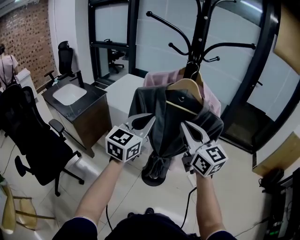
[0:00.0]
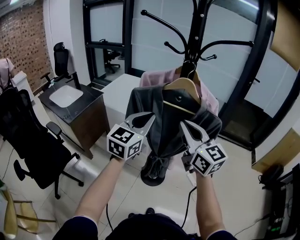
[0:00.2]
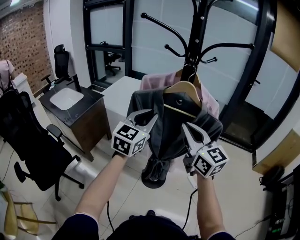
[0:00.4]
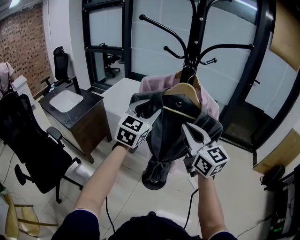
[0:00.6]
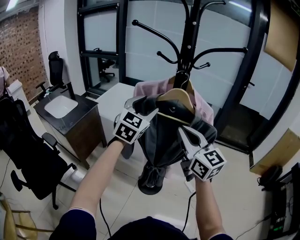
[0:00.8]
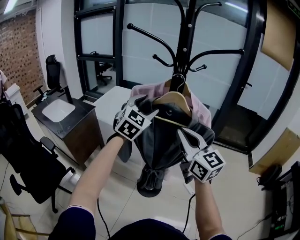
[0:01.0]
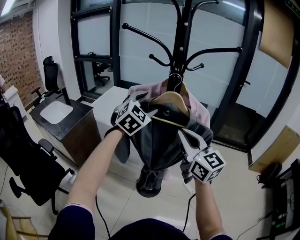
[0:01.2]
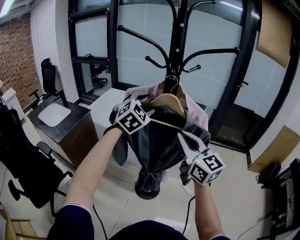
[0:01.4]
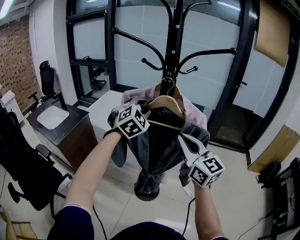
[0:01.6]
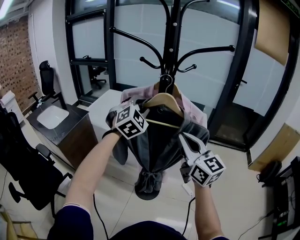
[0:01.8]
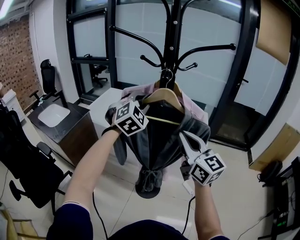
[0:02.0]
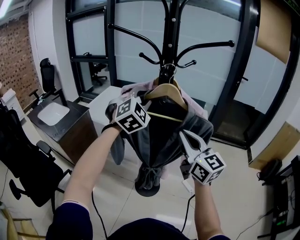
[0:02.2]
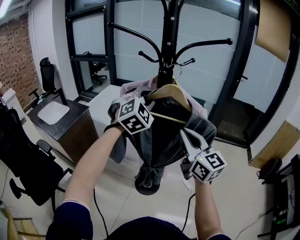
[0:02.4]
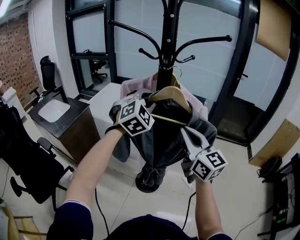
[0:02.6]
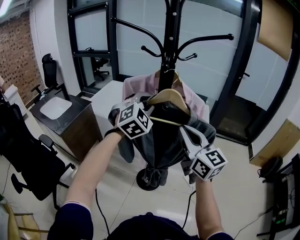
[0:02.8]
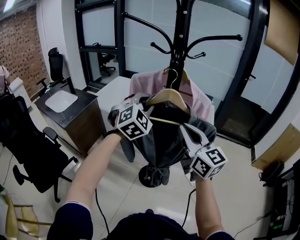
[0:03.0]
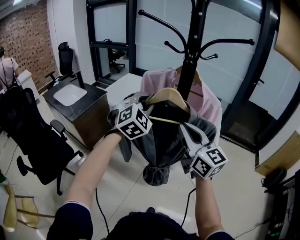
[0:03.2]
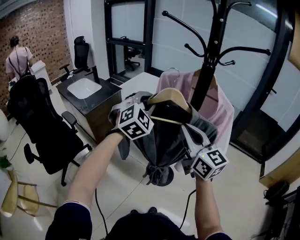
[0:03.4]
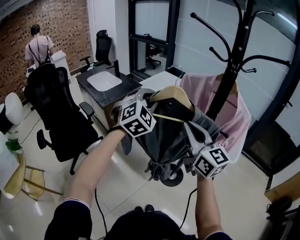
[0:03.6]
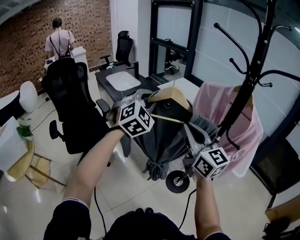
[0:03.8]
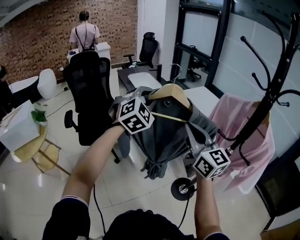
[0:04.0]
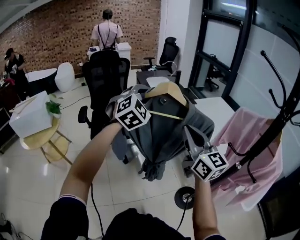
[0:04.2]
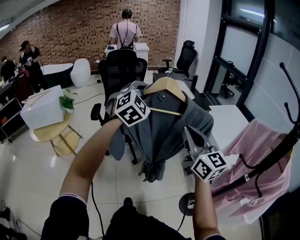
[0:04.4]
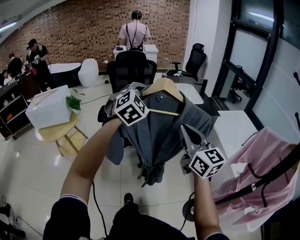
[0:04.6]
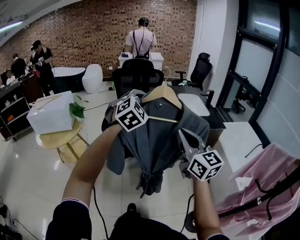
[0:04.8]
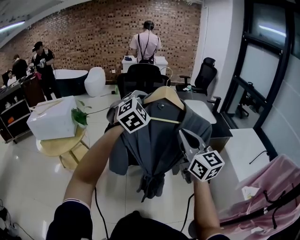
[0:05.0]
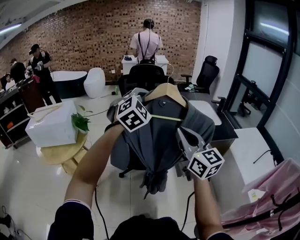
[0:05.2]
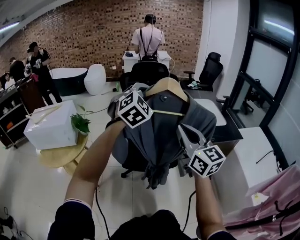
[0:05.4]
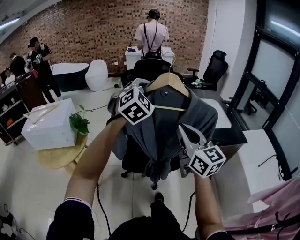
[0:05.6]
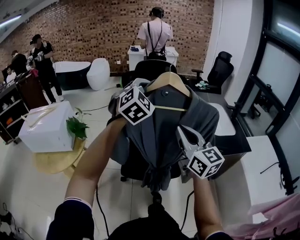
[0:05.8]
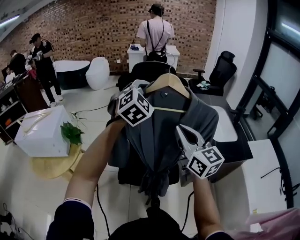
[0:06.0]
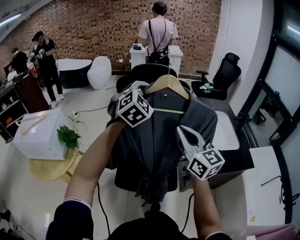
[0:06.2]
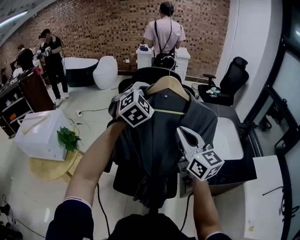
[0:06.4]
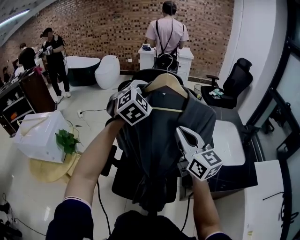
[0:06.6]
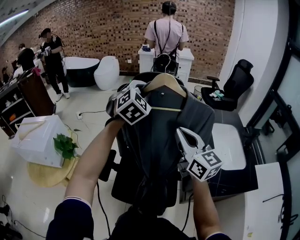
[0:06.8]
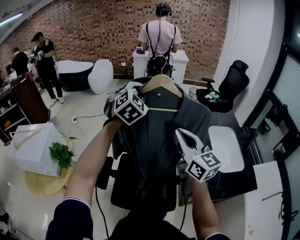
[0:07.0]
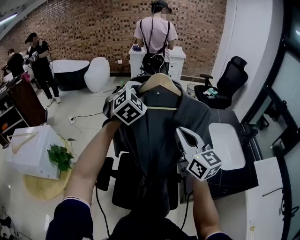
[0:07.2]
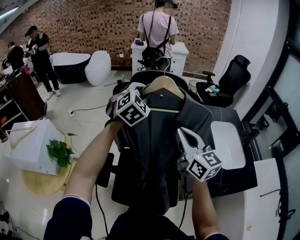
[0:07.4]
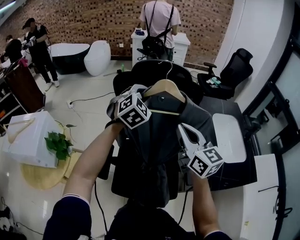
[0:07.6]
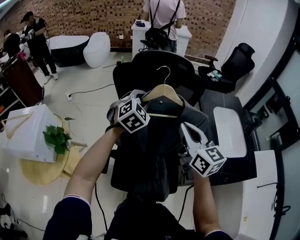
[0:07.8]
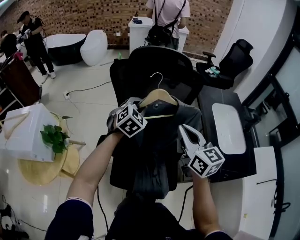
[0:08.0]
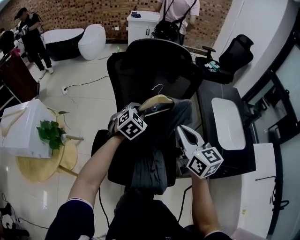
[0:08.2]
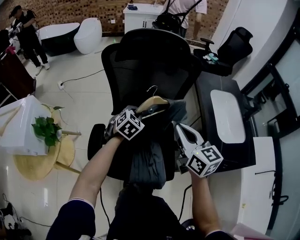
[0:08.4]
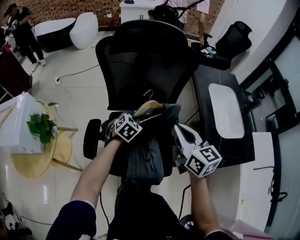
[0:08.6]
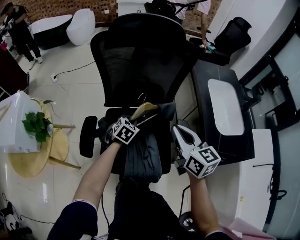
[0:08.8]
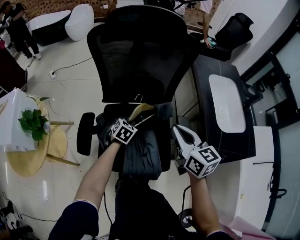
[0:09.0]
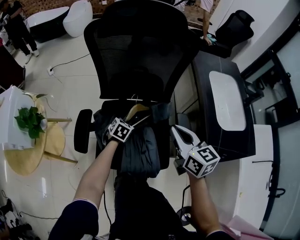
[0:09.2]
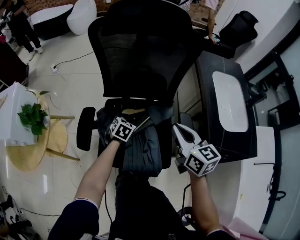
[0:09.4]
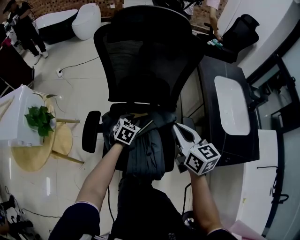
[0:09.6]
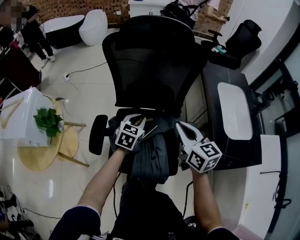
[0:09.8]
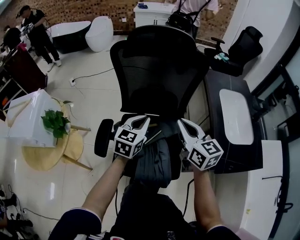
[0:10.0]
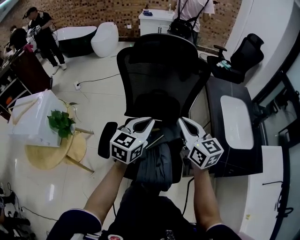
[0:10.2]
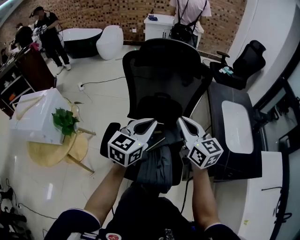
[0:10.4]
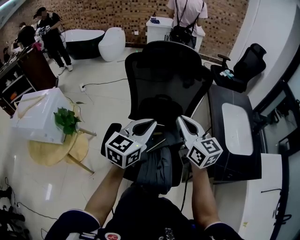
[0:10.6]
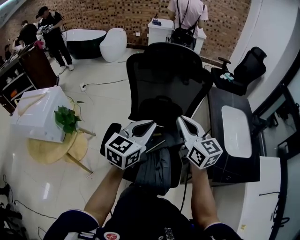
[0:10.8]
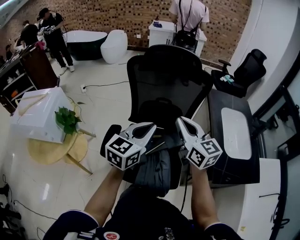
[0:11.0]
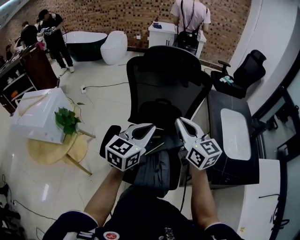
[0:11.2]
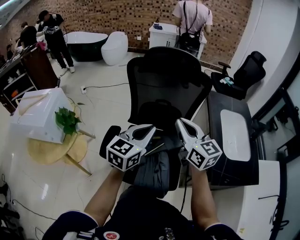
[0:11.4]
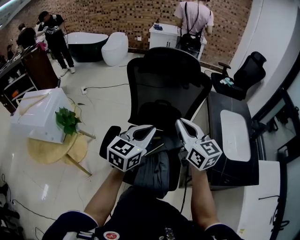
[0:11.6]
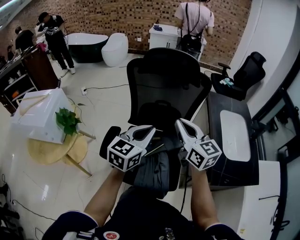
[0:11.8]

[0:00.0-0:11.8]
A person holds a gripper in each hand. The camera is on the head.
0:00.0 to 0:01.4: The left gripper heads forward and to the right, covering about 20 cm, changes its angle by some 50 degrees, and opens up. Meanwhile the right gripper moves some 5 cm.
0:01.4 to 0:03.0: The left gripper is displaced backward by about 5 cm, and closes.
0:03.0 to 0:04.4: The right gripper shifts by about 40 cm, and swivels about 50 degrees; the left gripper ends up some 50 cm from where it was, and swivels about 60 degrees.
0:04.4 to 0:06.0: The two grippers travel together, forward, approximately 50 cm.
0:06.0 to 0:07.4: The two grippers go approximately 25 cm forward.
0:07.4 to 0:08.8: The left gripper is displaced downward by roughly 40 cm, and turns by some 40 degrees. Meanwhile the right gripper is displaced downward by some 15 cm, and turns by some 20 degrees.
0:08.8 to 0:10.4: The right gripper heads upward and to the left, covering roughly 10 cm; the left gripper moves upward, about 30 cm, and points its fingers some 40 degrees further upward.
0:10.4 to 0:11.8: The grippers stay close to where they were, moving slightly.

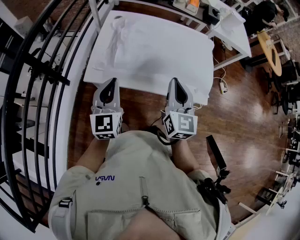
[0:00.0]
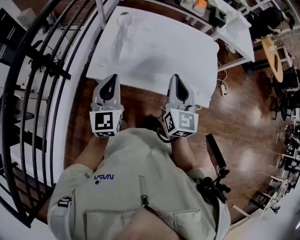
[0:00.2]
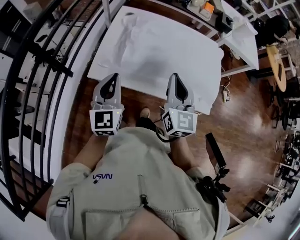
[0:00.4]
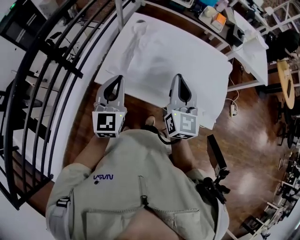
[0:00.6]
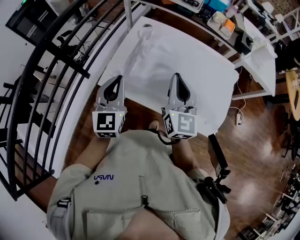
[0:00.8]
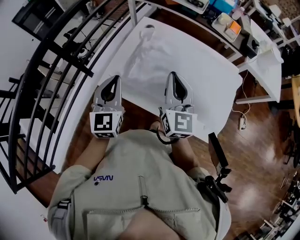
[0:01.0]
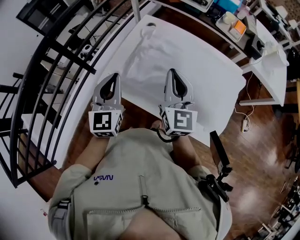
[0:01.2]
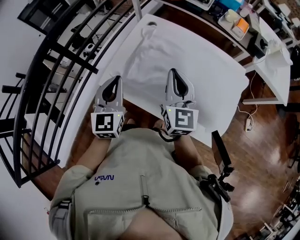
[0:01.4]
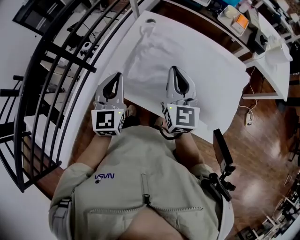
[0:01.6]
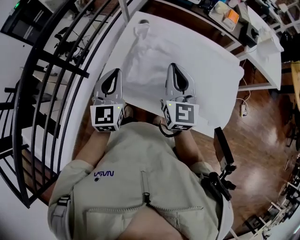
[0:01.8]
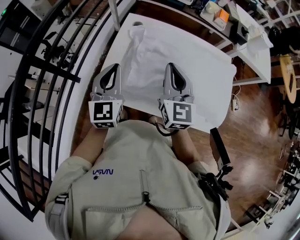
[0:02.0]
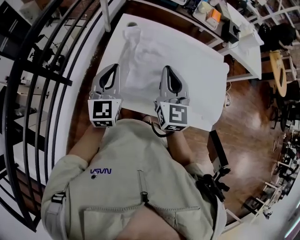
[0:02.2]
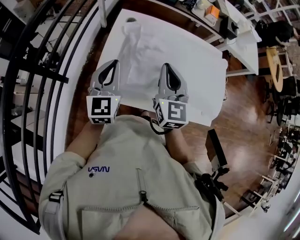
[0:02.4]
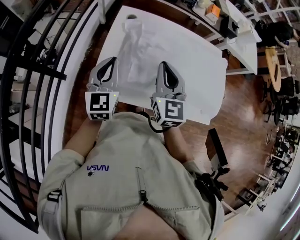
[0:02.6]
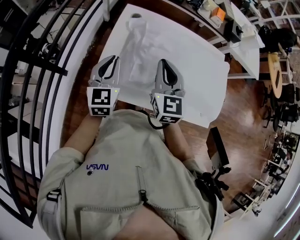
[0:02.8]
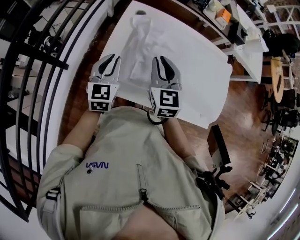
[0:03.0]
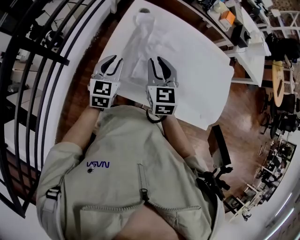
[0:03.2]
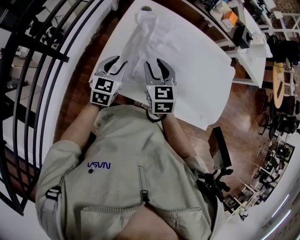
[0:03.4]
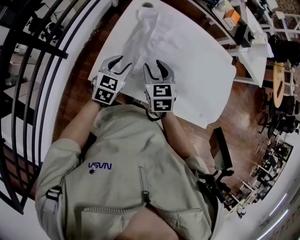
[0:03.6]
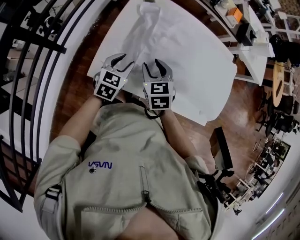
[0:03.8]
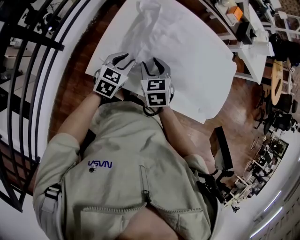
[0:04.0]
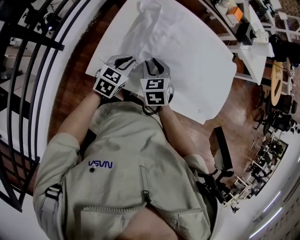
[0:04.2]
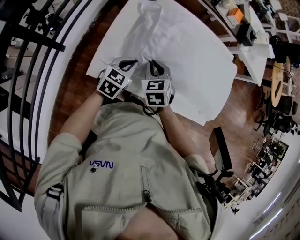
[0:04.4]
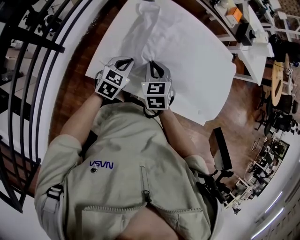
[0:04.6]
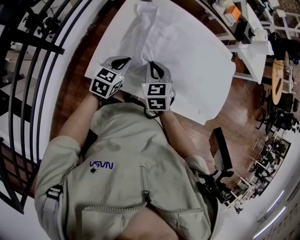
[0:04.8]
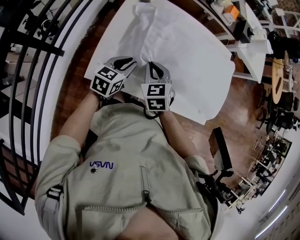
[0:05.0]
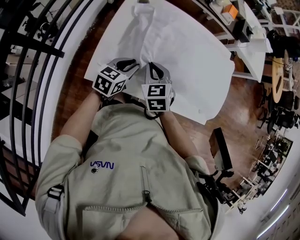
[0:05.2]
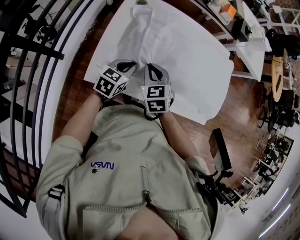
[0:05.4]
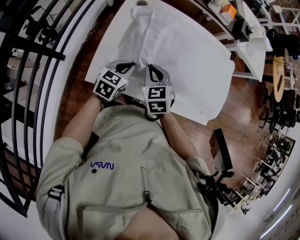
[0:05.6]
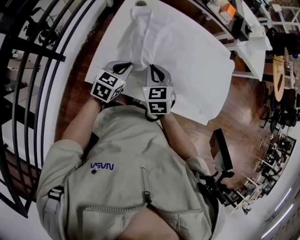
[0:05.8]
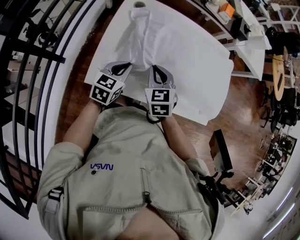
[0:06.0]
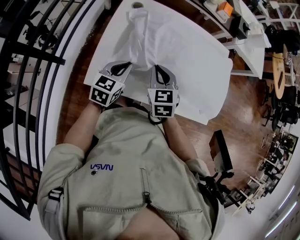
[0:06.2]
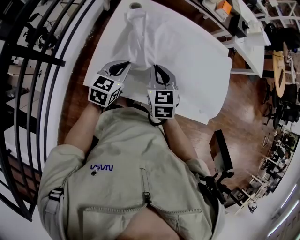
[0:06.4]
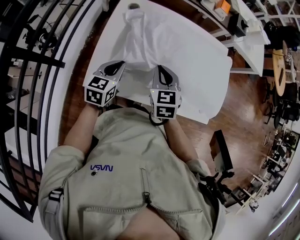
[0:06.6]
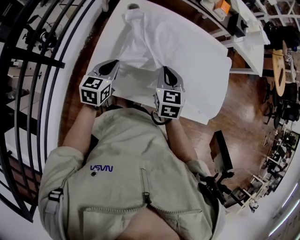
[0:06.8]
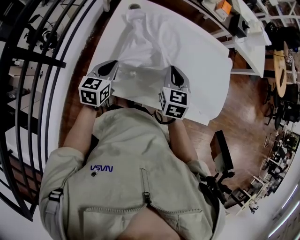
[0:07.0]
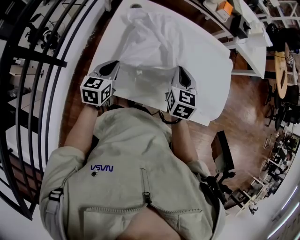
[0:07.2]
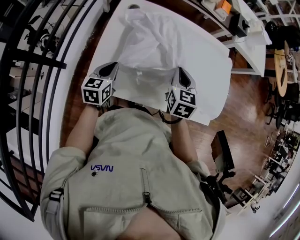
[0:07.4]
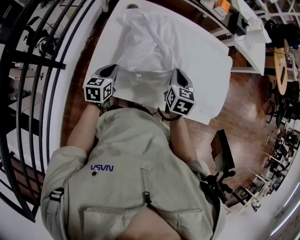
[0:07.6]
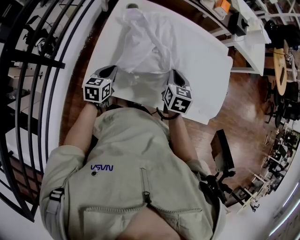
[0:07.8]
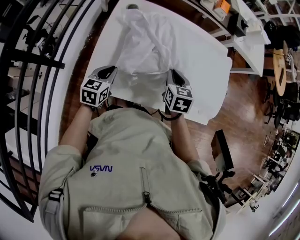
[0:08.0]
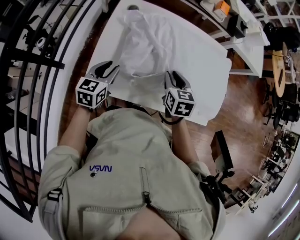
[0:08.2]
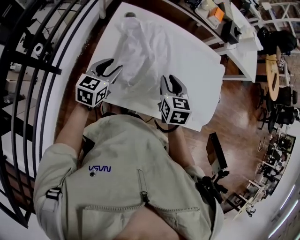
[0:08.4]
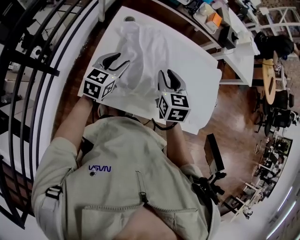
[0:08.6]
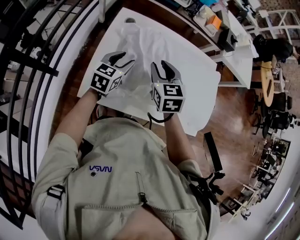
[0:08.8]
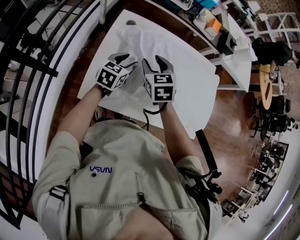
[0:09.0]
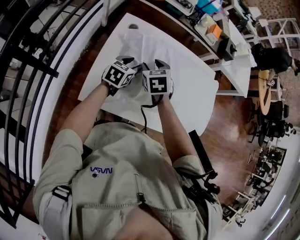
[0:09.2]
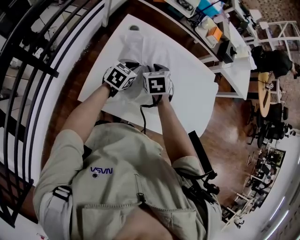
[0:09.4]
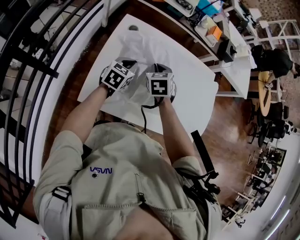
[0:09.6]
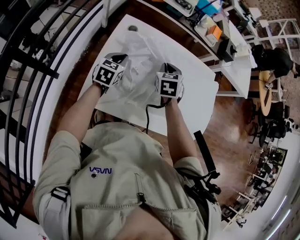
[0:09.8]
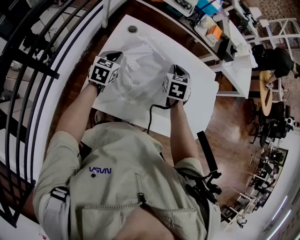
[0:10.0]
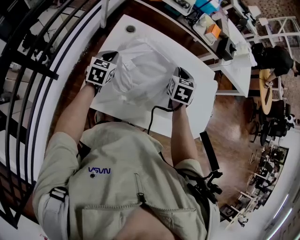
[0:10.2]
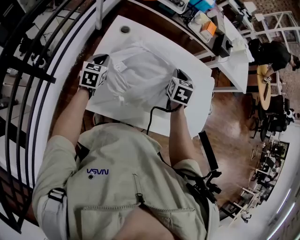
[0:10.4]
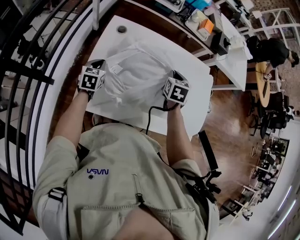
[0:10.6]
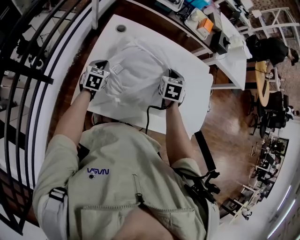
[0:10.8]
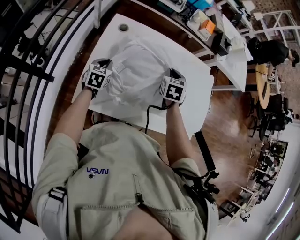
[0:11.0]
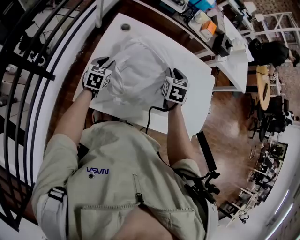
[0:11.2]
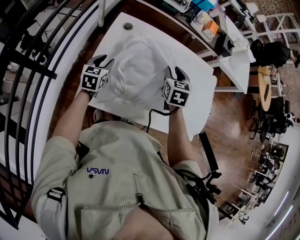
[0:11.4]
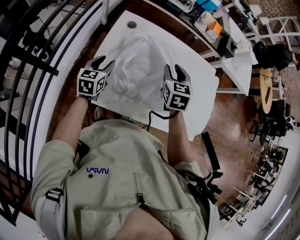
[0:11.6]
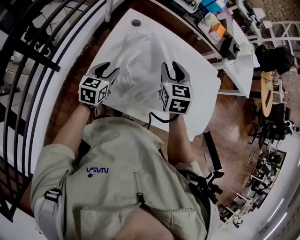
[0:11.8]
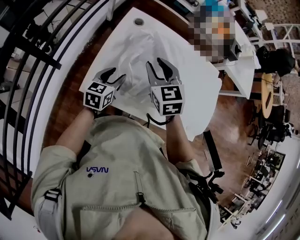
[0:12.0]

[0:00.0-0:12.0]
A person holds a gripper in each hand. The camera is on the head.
0:00.0 to 0:01.6: The left gripper shifts about 10 cm forward. Meanwhile the right gripper heads forward, covering approximately 20 cm, and changes its angle by about 20 degrees.
0:01.6 to 0:03.0: The right gripper moves to the left, roughly 10 cm, and turns by about 20 degrees. The left gripper goes about 15 cm forward, downward and to the left.
0:03.0 to 0:04.4: The left gripper travels downward and to the right by some 15 cm, changes its angle by some 30 degrees, and opens and closes again, while the right gripper is displaced downward by approximately 15 cm, rotates about 30 degrees, and opens, then closes again.
0:04.4 to 0:06.0: The right gripper ends up some 5 cm from where it was.
0:06.0 to 0:07.6: The right gripper is displaced to the right by some 10 cm, and swivels approximately 20 degrees. The left gripper shifts about 5 cm downward.
0:07.6 to 0:09.0: The right gripper moves to the left, some 15 cm, turns by some 30 degrees, and opens. Meanwhile the left gripper goes some 15 cm forward and upward, and opens up.
0:09.0 to 0:10.4: The left gripper goes about 10 cm to the left, and closes up, while the right gripper travels to the right and forward by some 15 cm, turns by roughly 20 degrees, and closes.
0:10.4 to 0:12.0: The right gripper travels to the left and backward by about 20 cm, turns by approximately 40 degrees, and opens up. Meanwhile the left gripper travels backward and to the right by about 15 cm, and opens up.
